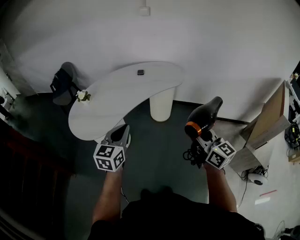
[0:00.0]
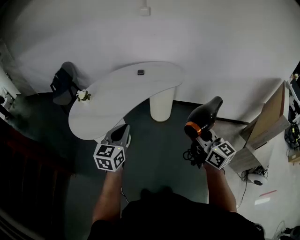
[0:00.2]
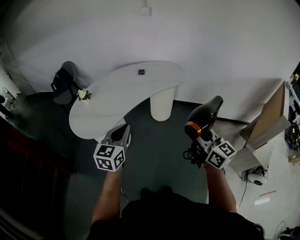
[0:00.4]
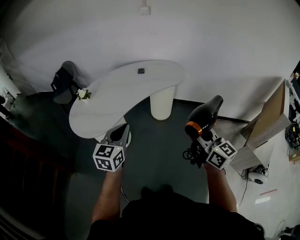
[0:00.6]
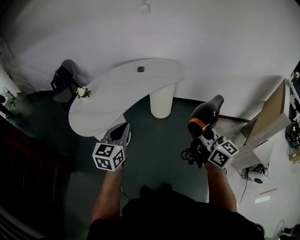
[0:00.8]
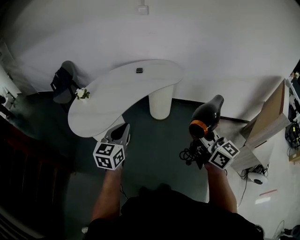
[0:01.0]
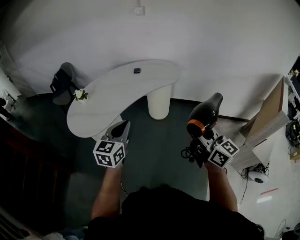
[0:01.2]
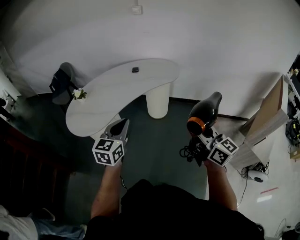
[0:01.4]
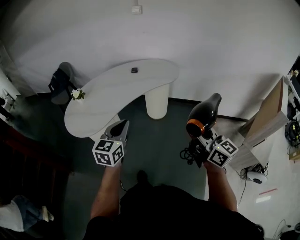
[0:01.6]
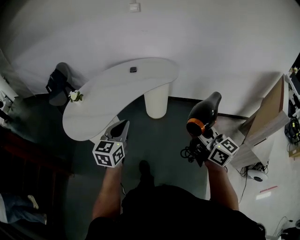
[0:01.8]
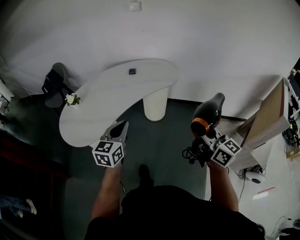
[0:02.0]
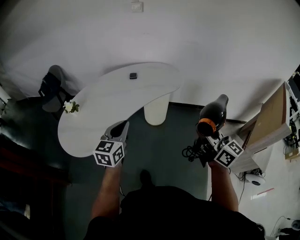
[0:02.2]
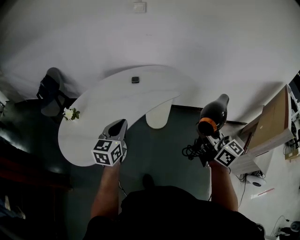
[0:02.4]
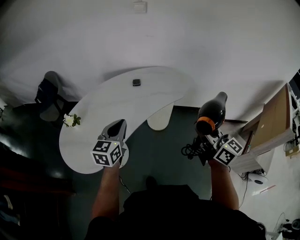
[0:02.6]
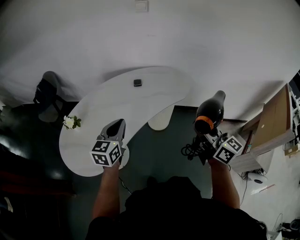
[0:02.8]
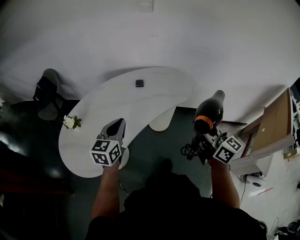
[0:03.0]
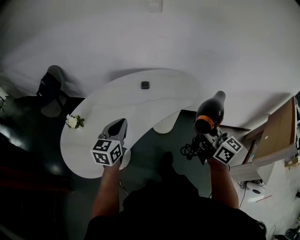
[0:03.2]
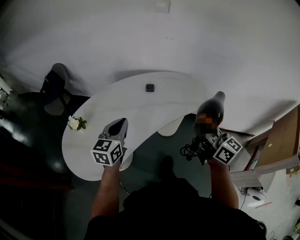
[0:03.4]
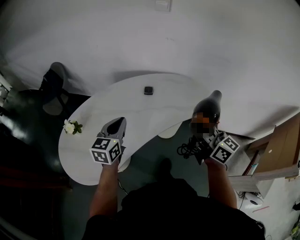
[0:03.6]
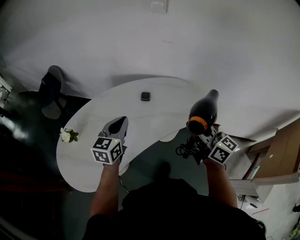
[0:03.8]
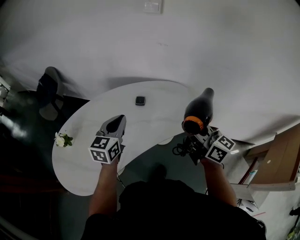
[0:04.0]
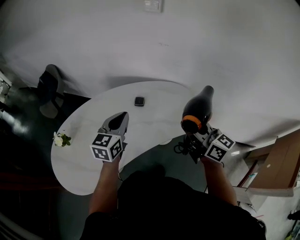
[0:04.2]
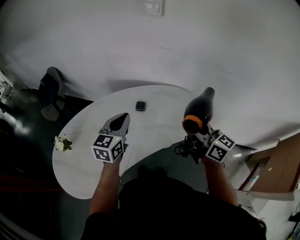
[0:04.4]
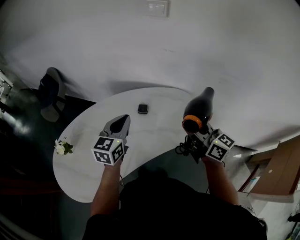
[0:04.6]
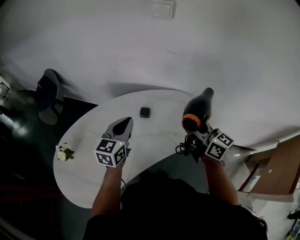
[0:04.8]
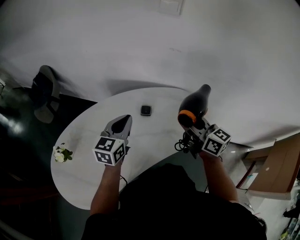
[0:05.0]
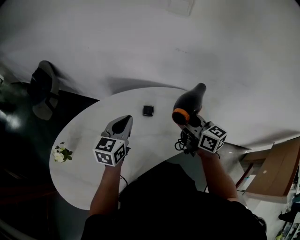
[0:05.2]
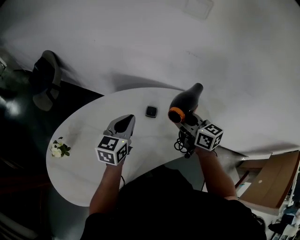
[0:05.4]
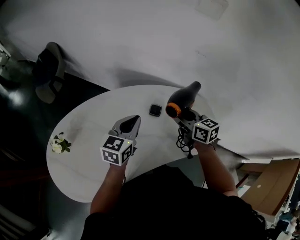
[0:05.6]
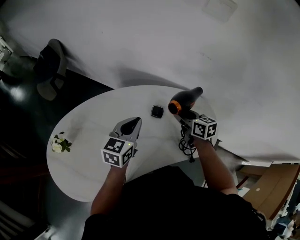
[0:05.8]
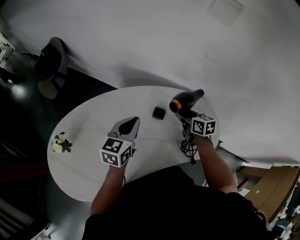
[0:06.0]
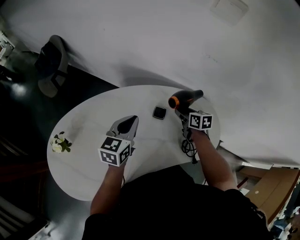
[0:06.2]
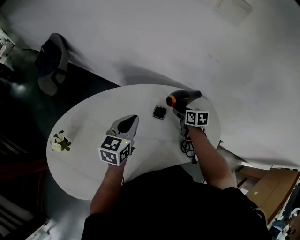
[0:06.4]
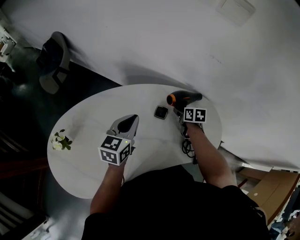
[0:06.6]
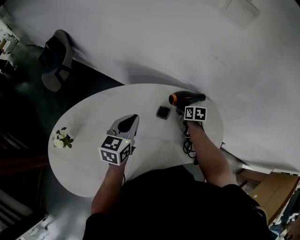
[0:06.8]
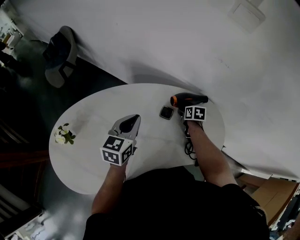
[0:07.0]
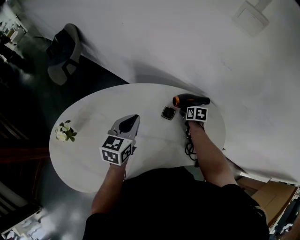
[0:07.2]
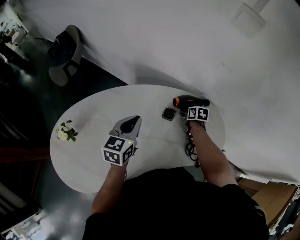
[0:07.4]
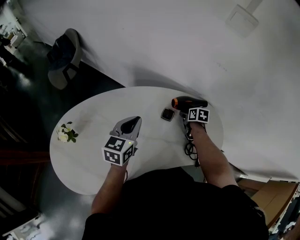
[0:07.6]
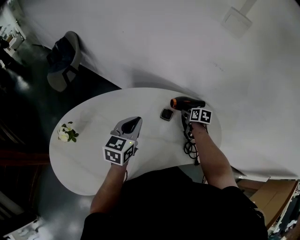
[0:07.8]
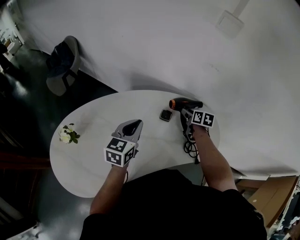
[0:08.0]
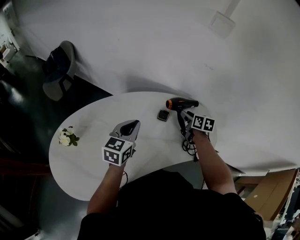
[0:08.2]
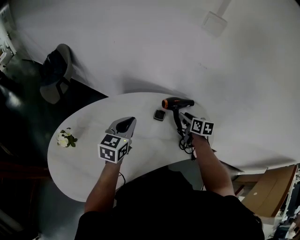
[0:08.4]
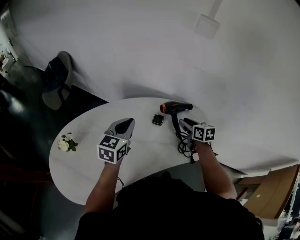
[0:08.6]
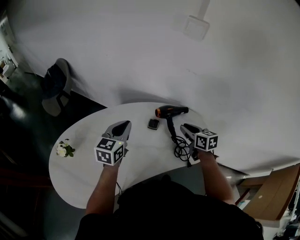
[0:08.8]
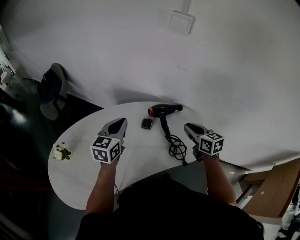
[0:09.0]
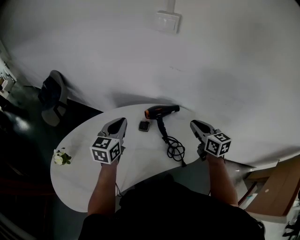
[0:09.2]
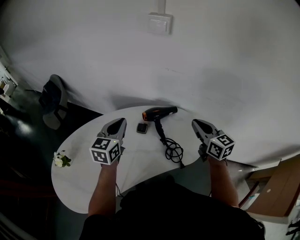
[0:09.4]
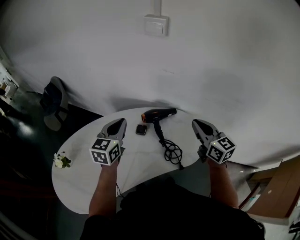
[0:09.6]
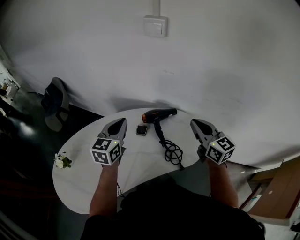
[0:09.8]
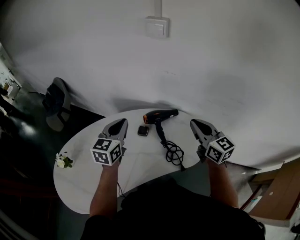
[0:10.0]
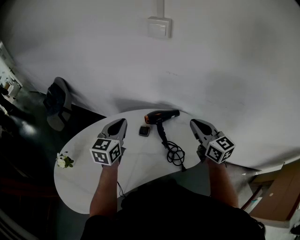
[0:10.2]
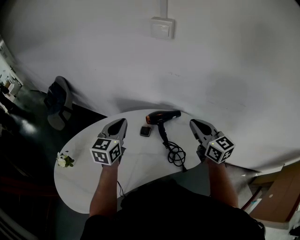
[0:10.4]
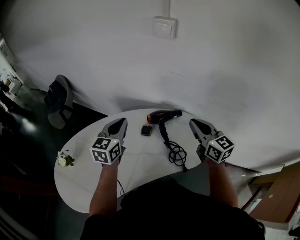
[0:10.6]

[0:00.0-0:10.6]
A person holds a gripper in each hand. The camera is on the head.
0:00.0 to 0:01.6: Both grippers move to the right, roughly 5 cm.
0:01.6 to 0:03.0: Both grippers travel together forward, some 30 cm.
0:03.0 to 0:04.6: The left gripper moves forward and to the right, approximately 30 cm, while the right gripper heads forward, covering about 30 cm.
0:04.6 to 0:06.0: The left gripper travels forward and downward by some 15 cm; the right gripper shifts roughly 30 cm downward and forward, and tilts its fingers about 30 degrees downward.
0:06.0 to 0:07.6: The right gripper goes approximately 10 cm downward, and turns by approximately 30 degrees.
0:07.6 to 0:09.0: The left gripper moves upward, some 5 cm, while the right gripper shifts some 25 cm upward and backward, tilts its fingers roughly 30 degrees upward, and closes.
0:09.0 to 0:10.6: The left gripper moves some 5 cm. Meanwhile the right gripper travels upward by approximately 10 cm.

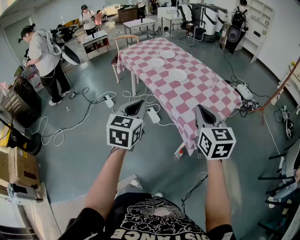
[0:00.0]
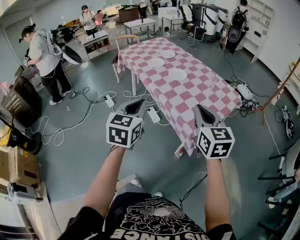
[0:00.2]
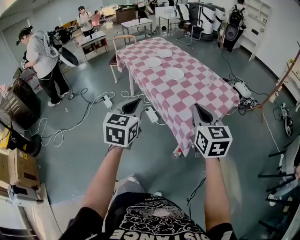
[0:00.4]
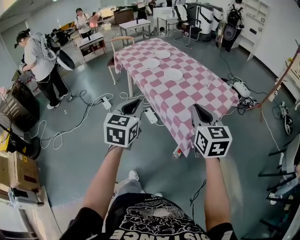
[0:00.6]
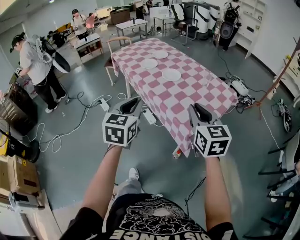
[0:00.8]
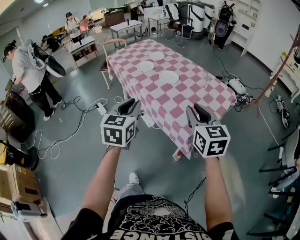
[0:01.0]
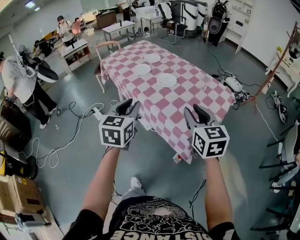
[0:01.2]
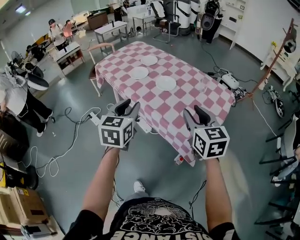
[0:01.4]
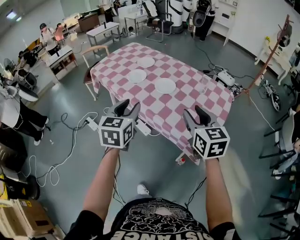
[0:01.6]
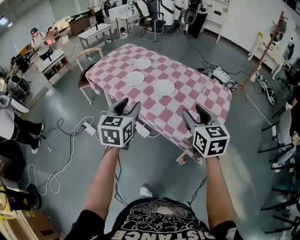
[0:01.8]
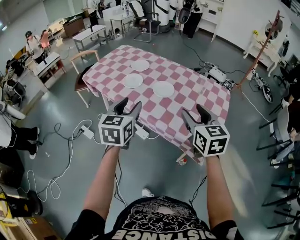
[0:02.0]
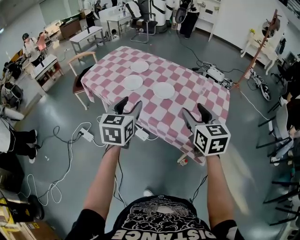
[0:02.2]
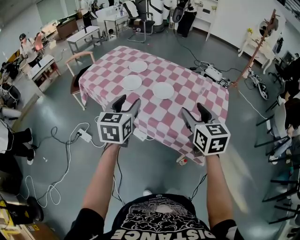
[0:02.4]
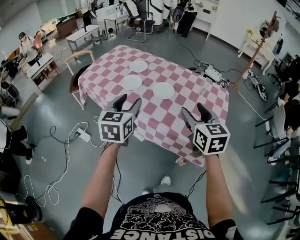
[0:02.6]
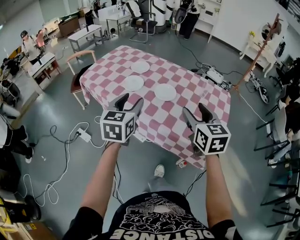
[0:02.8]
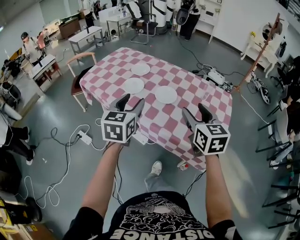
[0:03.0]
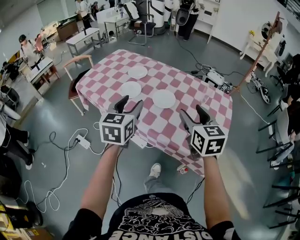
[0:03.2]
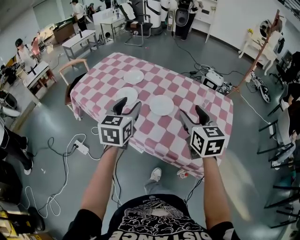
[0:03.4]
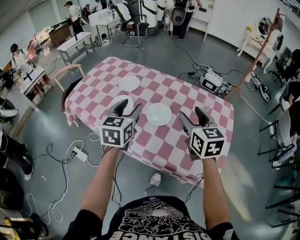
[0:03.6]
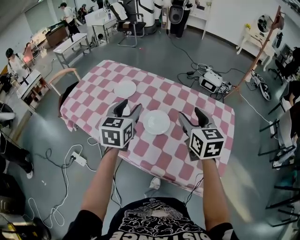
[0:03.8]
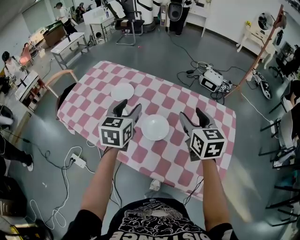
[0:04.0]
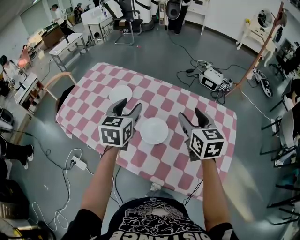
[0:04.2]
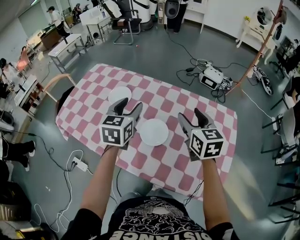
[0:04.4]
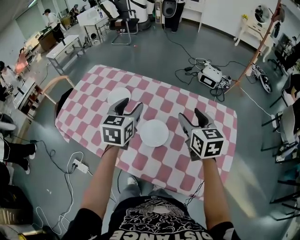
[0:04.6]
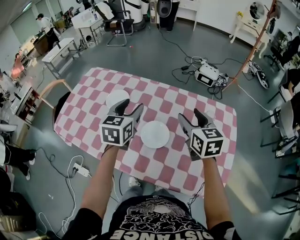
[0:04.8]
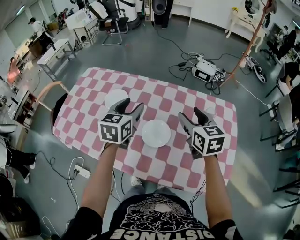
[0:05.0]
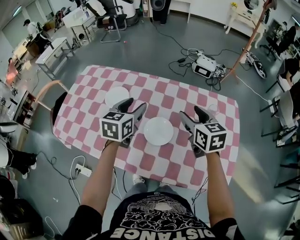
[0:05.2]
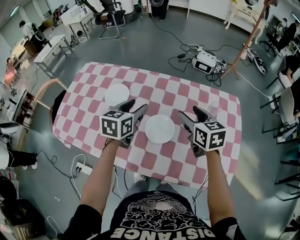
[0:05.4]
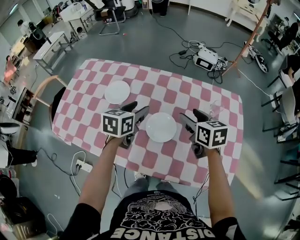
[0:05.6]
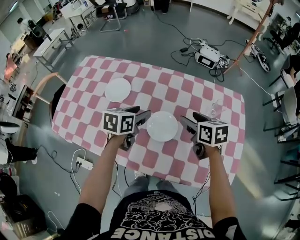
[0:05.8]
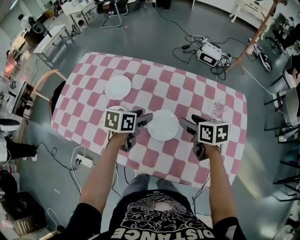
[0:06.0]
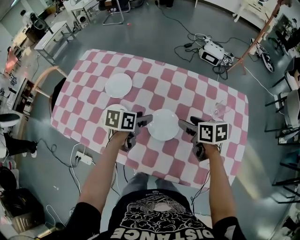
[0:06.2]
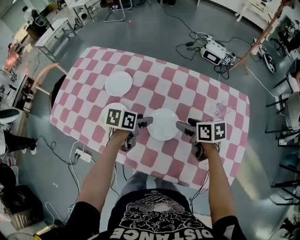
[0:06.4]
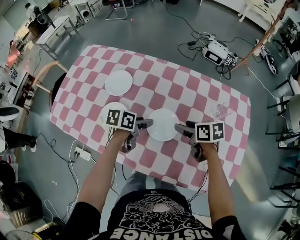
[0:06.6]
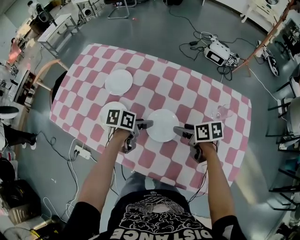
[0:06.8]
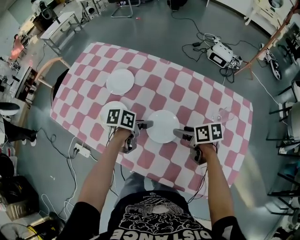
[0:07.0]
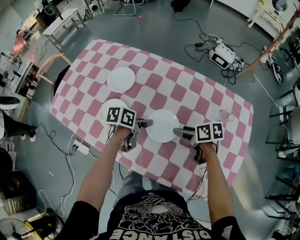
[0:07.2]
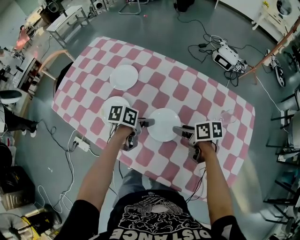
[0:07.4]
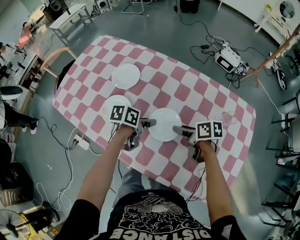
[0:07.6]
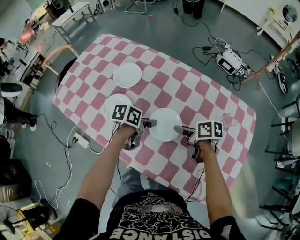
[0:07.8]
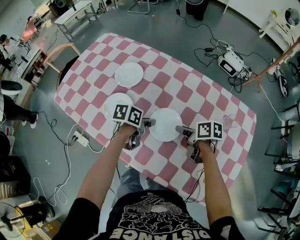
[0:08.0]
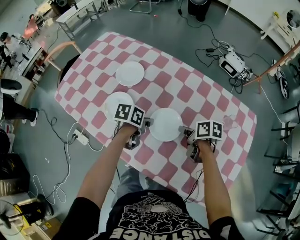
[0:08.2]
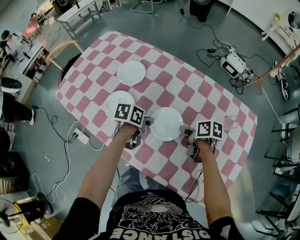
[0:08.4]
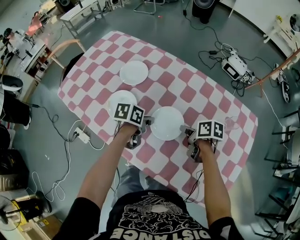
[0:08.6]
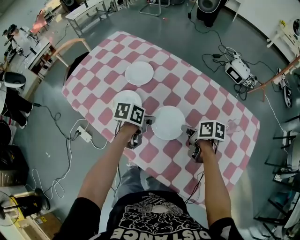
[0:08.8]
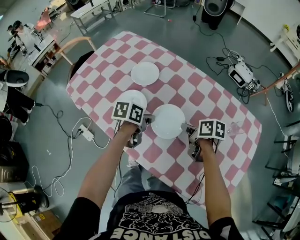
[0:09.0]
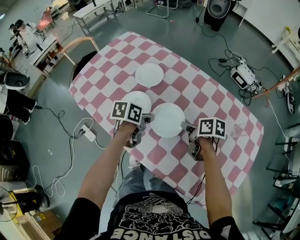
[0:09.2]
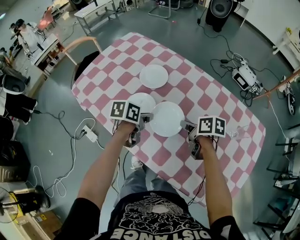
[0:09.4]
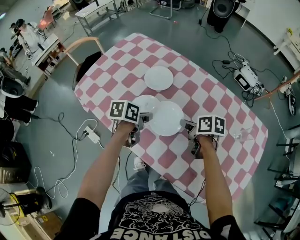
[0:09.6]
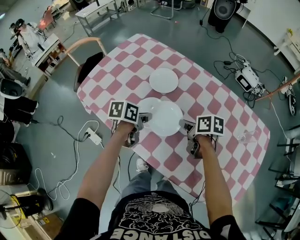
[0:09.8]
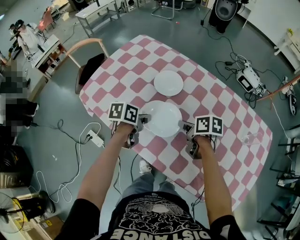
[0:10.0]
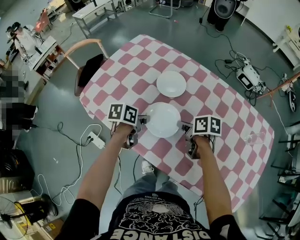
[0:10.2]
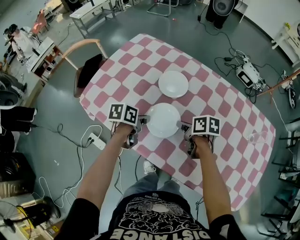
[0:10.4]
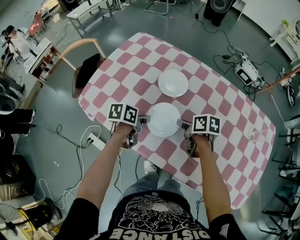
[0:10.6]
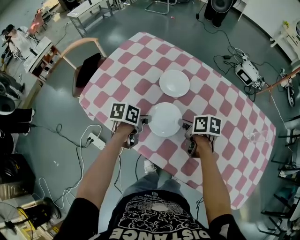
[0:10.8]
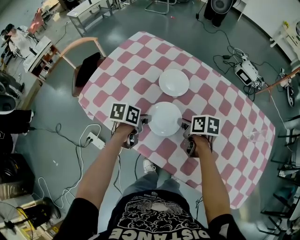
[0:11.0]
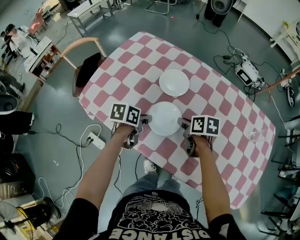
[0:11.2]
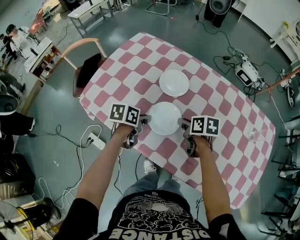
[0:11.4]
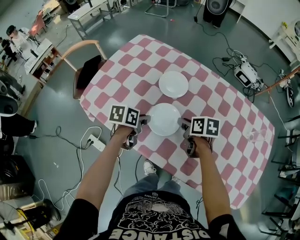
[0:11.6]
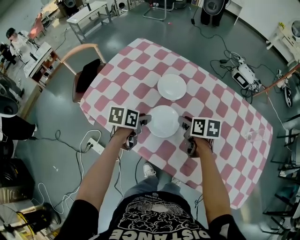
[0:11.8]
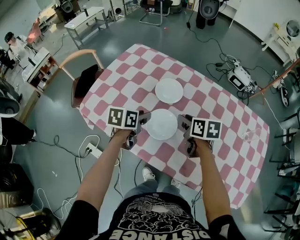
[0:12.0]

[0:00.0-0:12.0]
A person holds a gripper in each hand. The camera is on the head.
0:00.0 to 0:01.6: Both grippers travel together forward, roughly 15 cm. The left gripper opens its fingers. The right gripper opens.
0:01.6 to 0:03.0: The grippers both shift forward and to the left by approximately 10 cm.
0:03.0 to 0:04.4: Both grippers move forward, about 30 cm.
0:04.4 to 0:06.0: Both grippers travel together downward, roughly 15 cm. The right gripper changes its angle by some 30 degrees. The left gripper turns by some 40 degrees.
0:06.0 to 0:07.6: Both grippers travel together downward, roughly 10 cm. The right gripper swivels about 30 degrees, while the left gripper turns by some 30 degrees.
0:07.6 to 0:09.0: The left gripper ends up roughly 5 cm from where it was, and closes; the right gripper closes up.
0:09.0 to 0:10.4: The two grippers go about 20 cm to the left.
0:10.4 to 0:12.0: Both grippers move upward, roughly 5 cm. The right gripper swivels roughly 20 degrees; the left gripper opens up.

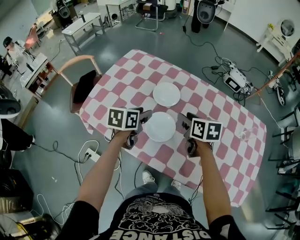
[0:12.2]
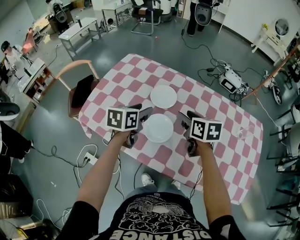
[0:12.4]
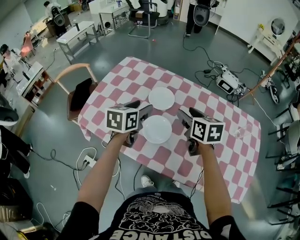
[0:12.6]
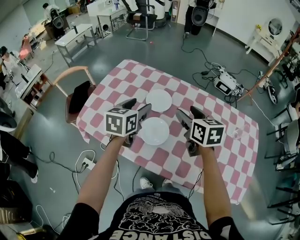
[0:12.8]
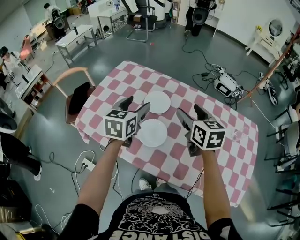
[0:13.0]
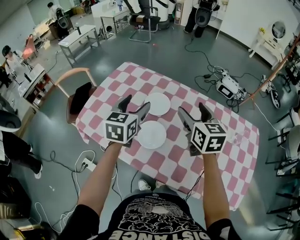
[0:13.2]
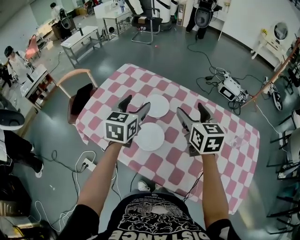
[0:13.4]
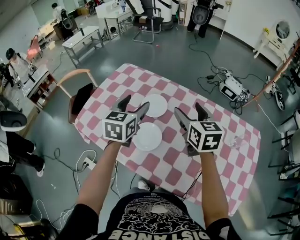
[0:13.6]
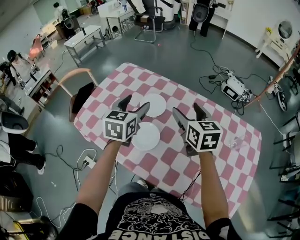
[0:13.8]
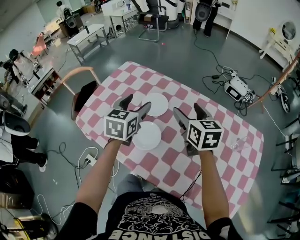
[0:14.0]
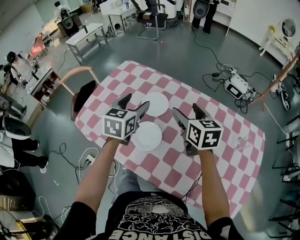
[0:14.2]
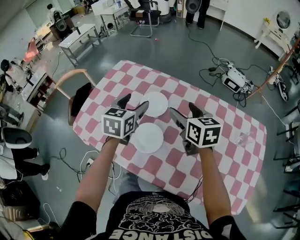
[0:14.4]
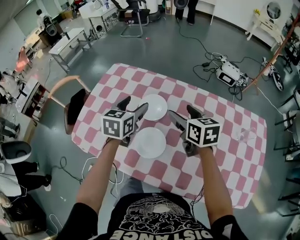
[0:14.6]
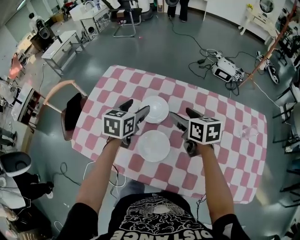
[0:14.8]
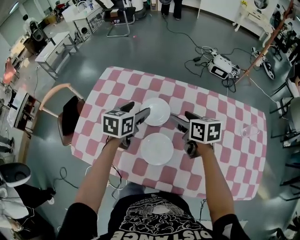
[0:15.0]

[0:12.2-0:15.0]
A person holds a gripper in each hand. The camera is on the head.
0:12.2 to 0:13.6: The right gripper travels upward and to the right by about 15 cm, turns by roughly 30 degrees, and opens, while the left gripper shifts approximately 15 cm upward, rotates approximately 30 degrees, and opens.
0:13.6 to 0:15.0: Both grippers move downward and forward, about 15 cm. The left gripper rotates about 30 degrees, while the right gripper turns by about 30 degrees.
